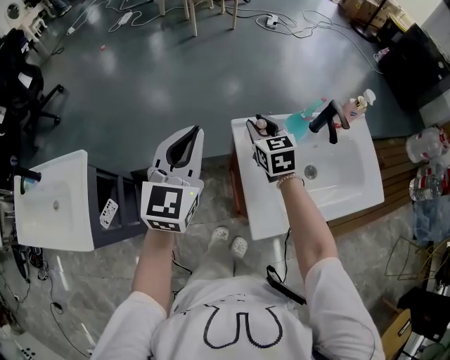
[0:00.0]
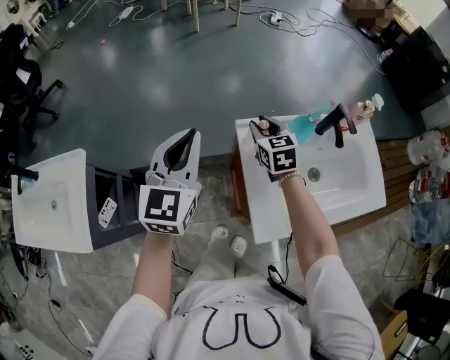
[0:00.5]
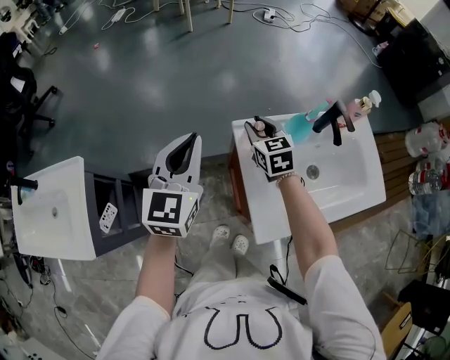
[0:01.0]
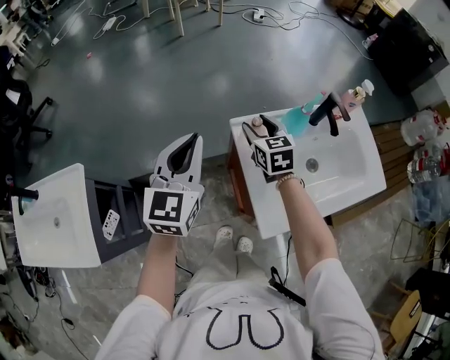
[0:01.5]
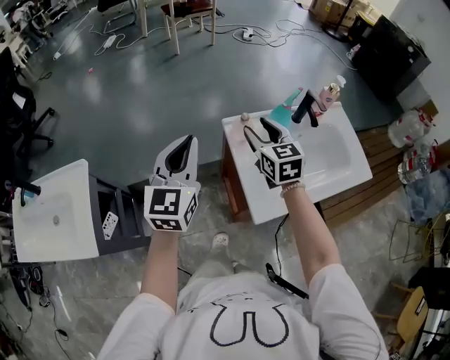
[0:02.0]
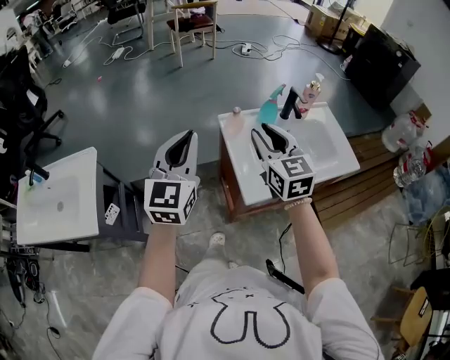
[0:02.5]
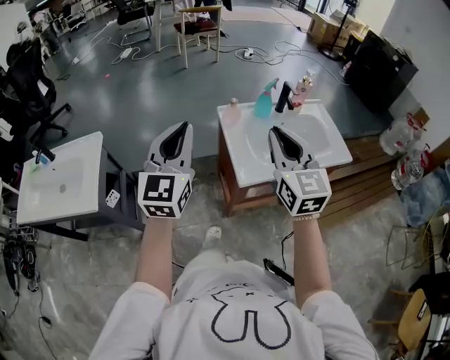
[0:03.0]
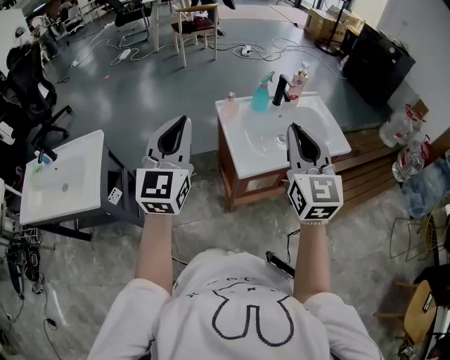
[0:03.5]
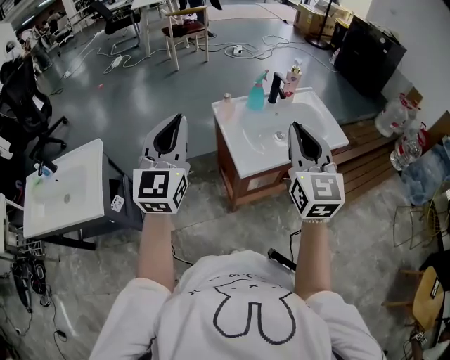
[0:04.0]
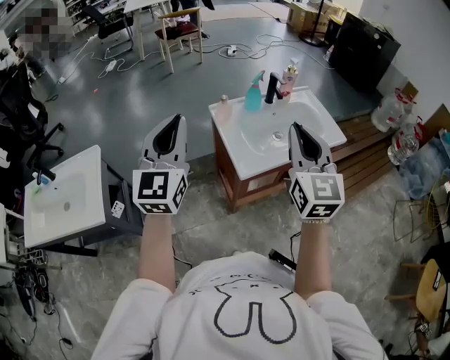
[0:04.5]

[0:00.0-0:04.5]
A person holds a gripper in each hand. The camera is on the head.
0:00.0 to 0:02.0: The right gripper goes roughly 10 cm backward and upward, and opens its fingers; the left gripper shifts some 5 cm backward.
0:02.0 to 0:04.5: The left gripper is displaced backward and upward by approximately 25 cm; the right gripper shifts approximately 40 cm backward and upward, swivels about 30 degrees, and closes its fingers.

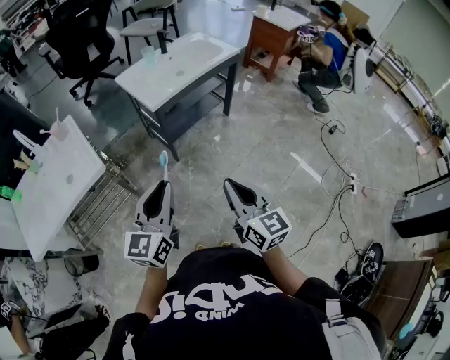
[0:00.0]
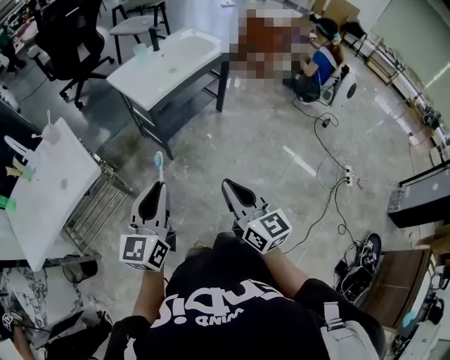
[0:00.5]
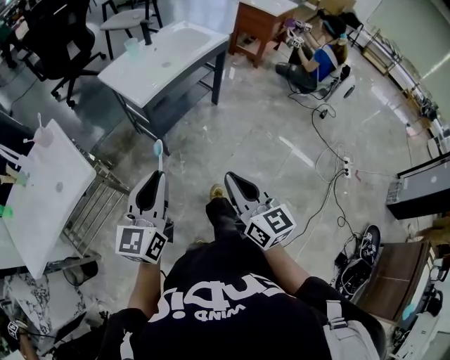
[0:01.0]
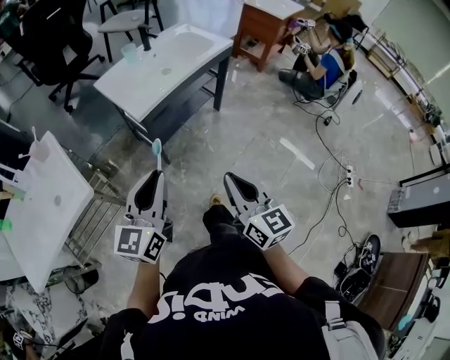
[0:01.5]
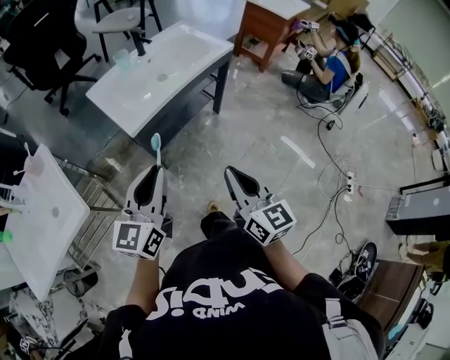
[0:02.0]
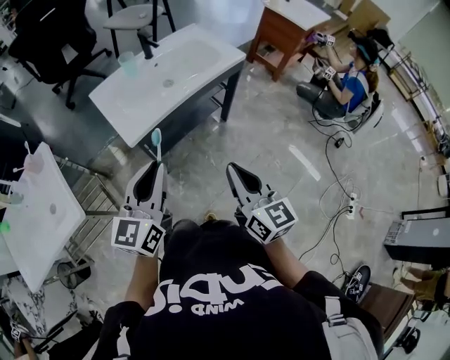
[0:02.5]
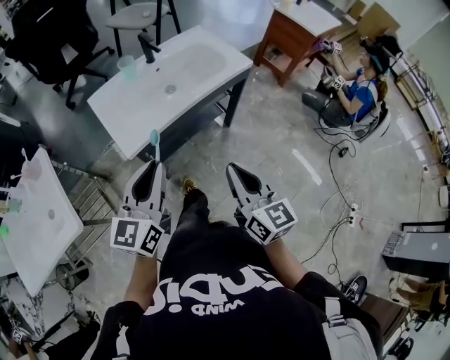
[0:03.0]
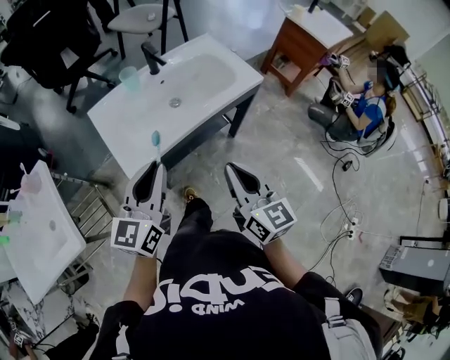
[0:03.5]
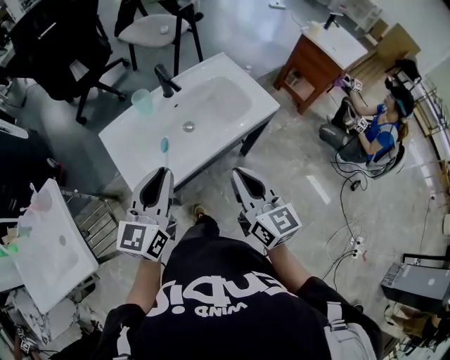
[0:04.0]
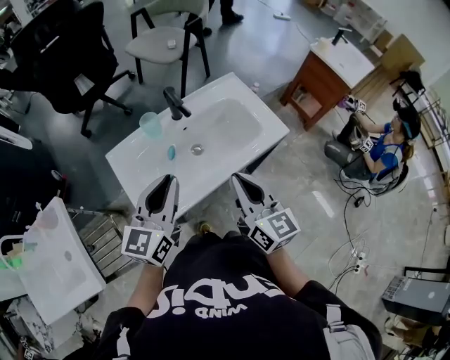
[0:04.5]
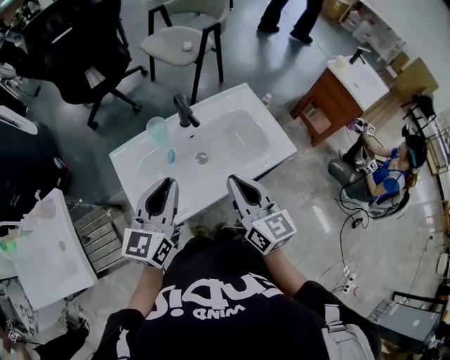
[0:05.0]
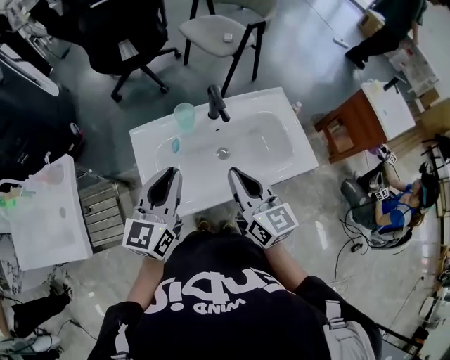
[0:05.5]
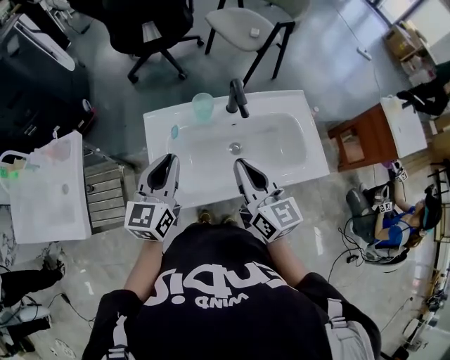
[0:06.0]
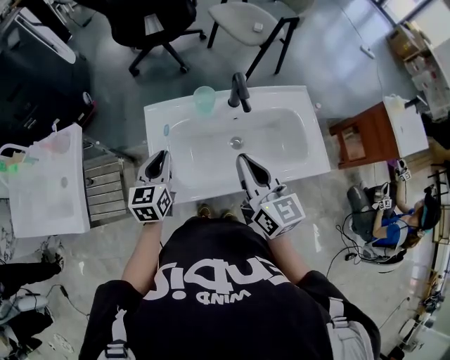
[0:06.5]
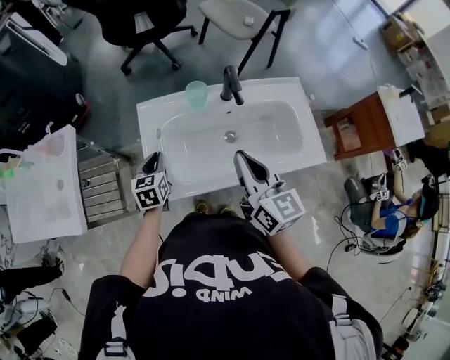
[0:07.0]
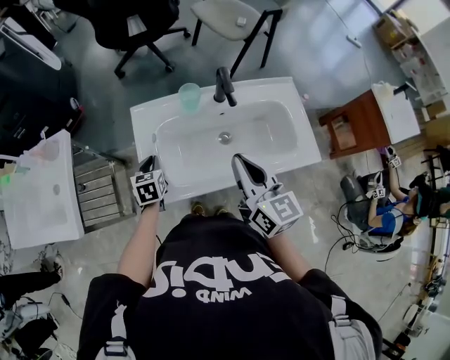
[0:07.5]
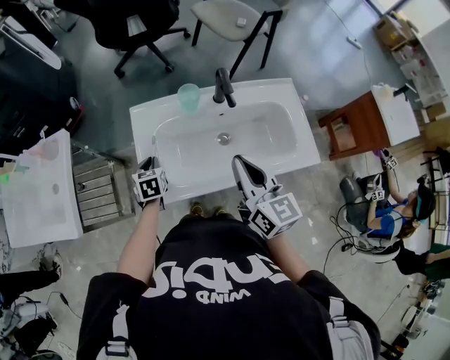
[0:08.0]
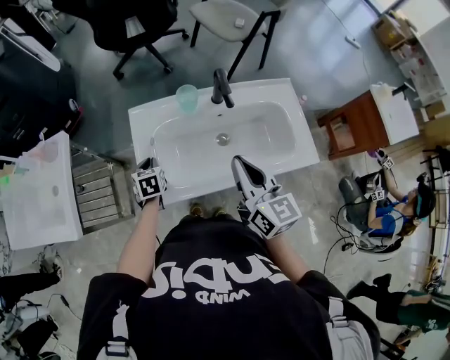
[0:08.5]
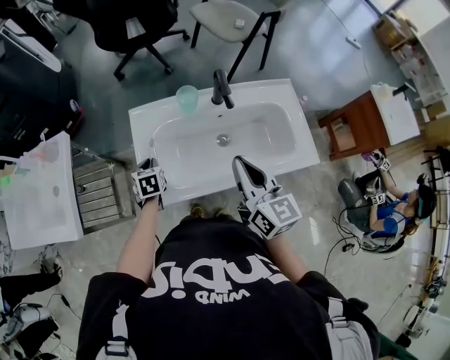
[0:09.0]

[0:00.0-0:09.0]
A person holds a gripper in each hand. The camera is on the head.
0:00.0 to 0:02.0: The grippers both shift forward by roughly 20 cm.
0:02.0 to 0:04.5: Both grippers move forward, roughly 40 cm.
0:04.5 to 0:07.0: The left gripper travels downward by roughly 25 cm, and tips its fingers downward by about 30 degrees. The right gripper moves about 10 cm, and changes its angle by about 20 degrees.
0:07.0 to 0:09.0: The left gripper travels downward by roughly 5 cm.

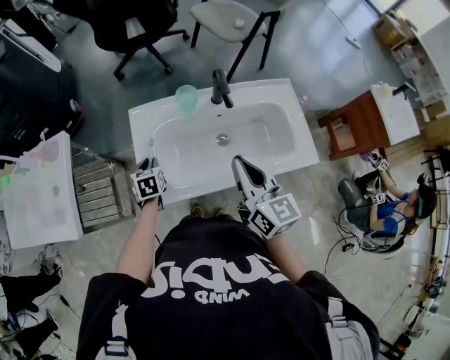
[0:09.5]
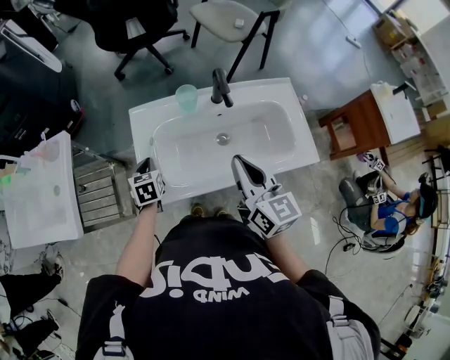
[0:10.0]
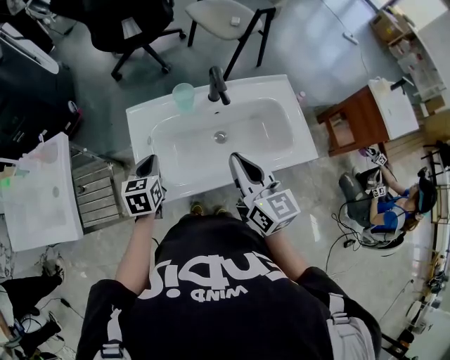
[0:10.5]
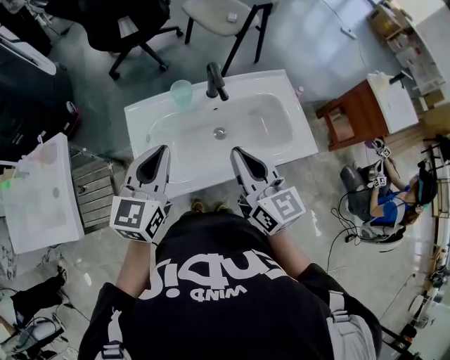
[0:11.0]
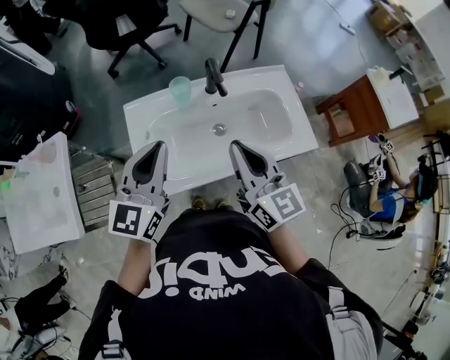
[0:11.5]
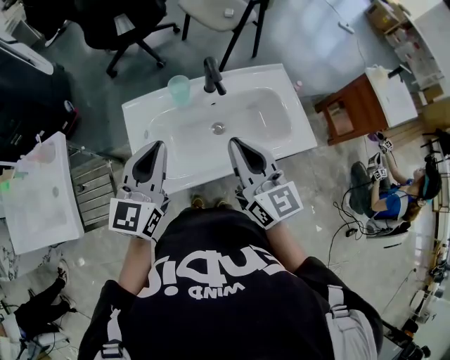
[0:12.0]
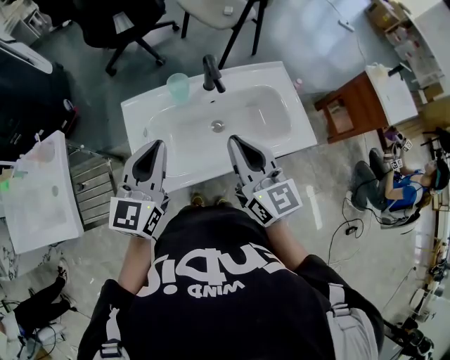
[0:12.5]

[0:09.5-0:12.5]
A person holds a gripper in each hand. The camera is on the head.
0:09.5 to 0:11.0: The left gripper travels upward by roughly 30 cm, and tips its fingers upward by roughly 40 degrees.
0:11.0 to 0:12.5: The grippers stay close to where they were, moving slightly.

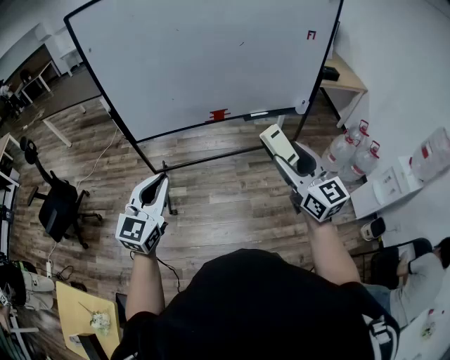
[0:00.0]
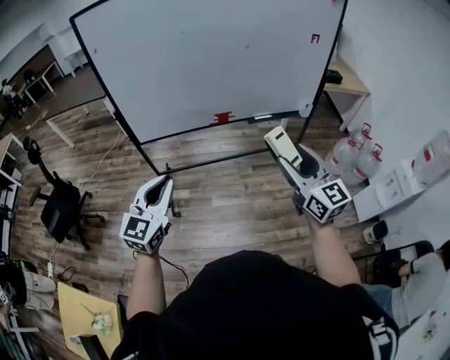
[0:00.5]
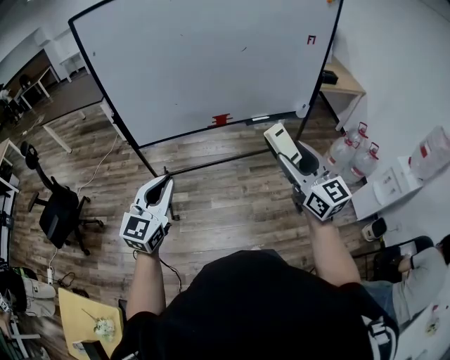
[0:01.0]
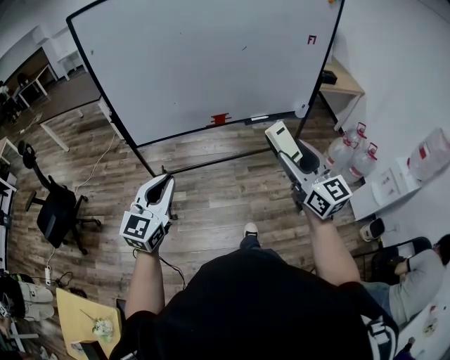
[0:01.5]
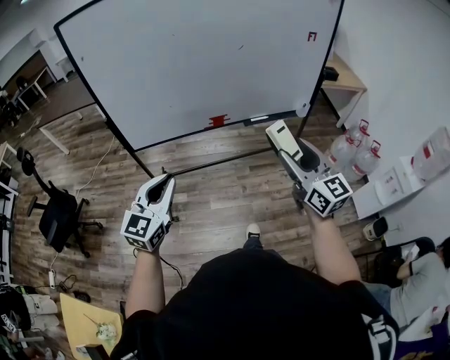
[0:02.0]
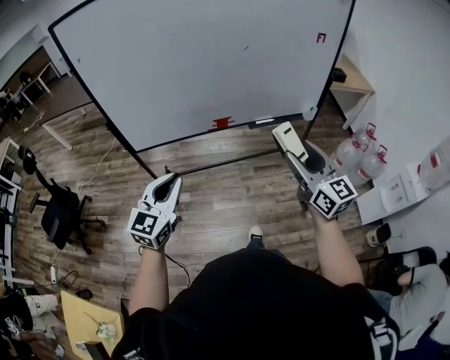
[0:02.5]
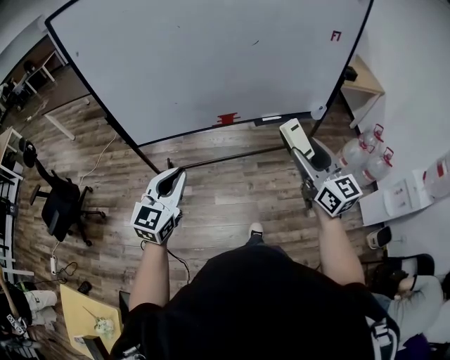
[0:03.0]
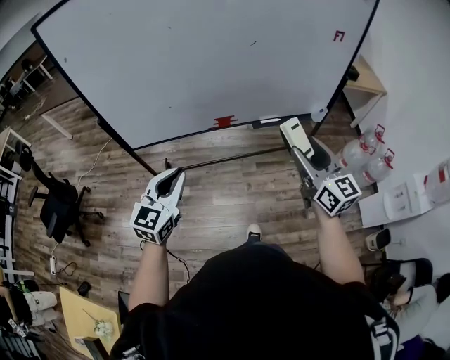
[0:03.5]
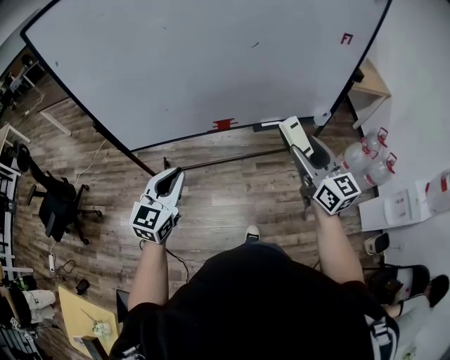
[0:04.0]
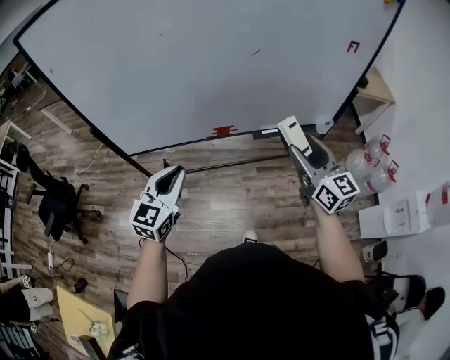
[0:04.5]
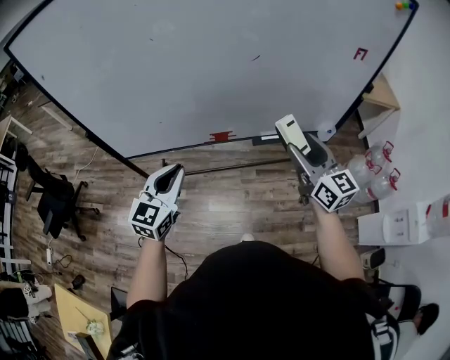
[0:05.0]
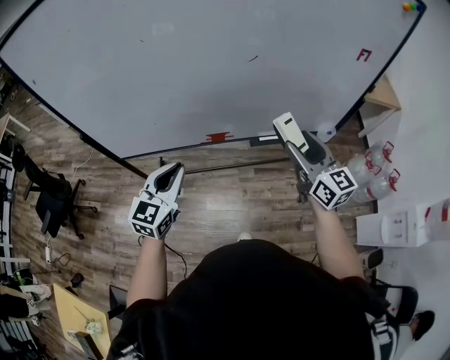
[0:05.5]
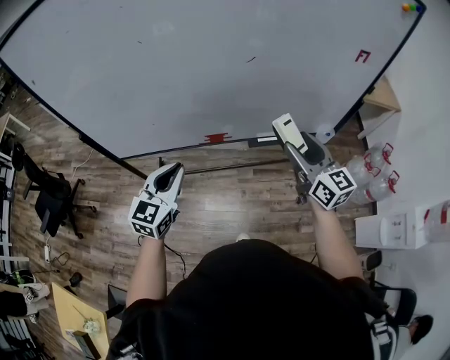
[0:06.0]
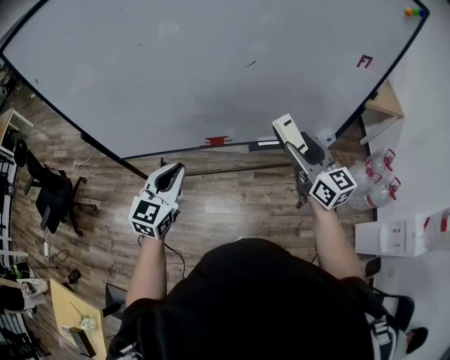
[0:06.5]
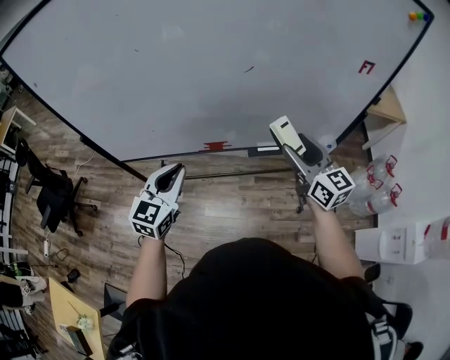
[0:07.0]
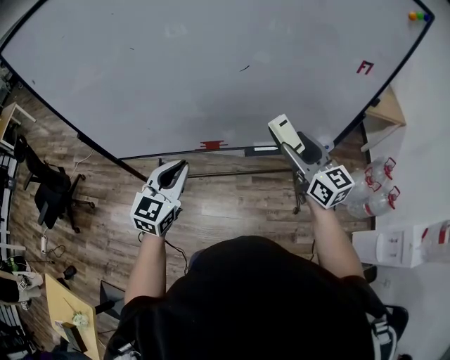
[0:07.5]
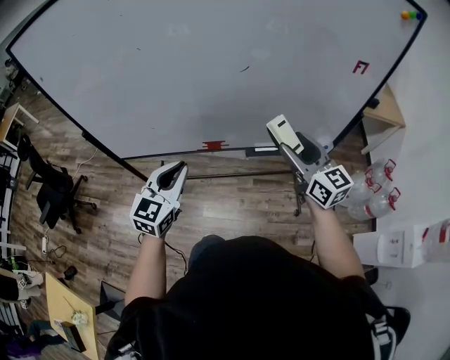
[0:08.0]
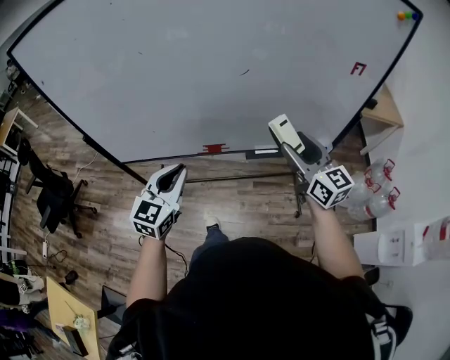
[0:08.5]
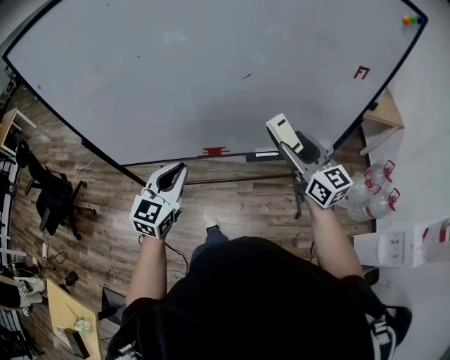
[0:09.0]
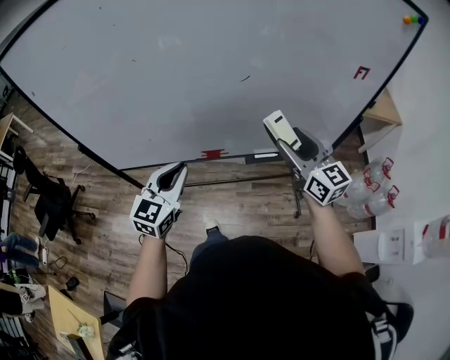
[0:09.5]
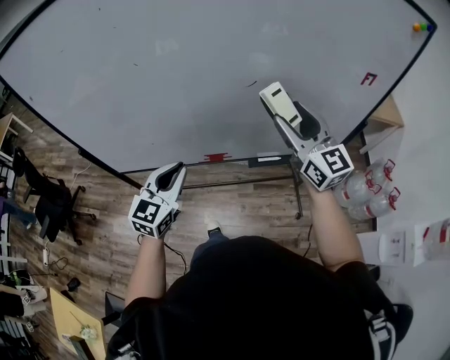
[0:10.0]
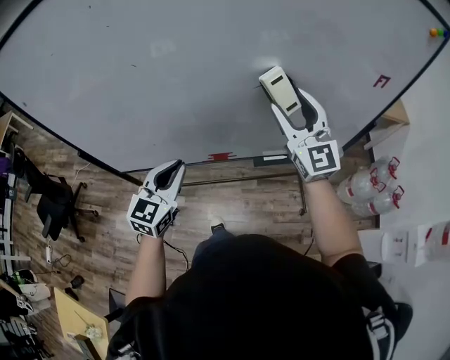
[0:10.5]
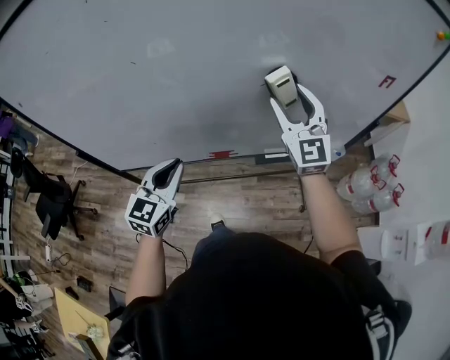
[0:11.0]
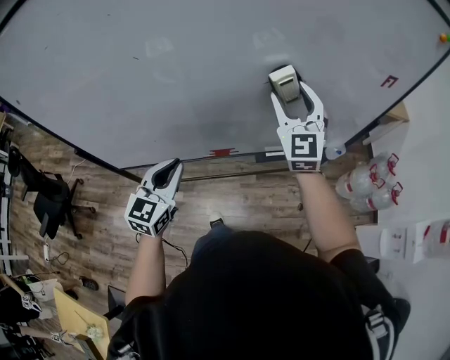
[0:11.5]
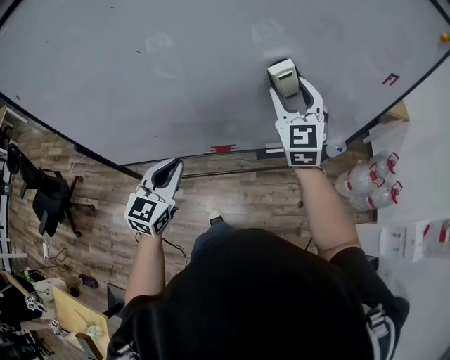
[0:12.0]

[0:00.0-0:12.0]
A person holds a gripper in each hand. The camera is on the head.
0:00.0 to 0:02.0: The two grippers go roughly 5 cm forward.
0:02.0 to 0:04.0: Both grippers move forward, approximately 20 cm.
0:04.0 to 0:06.0: The left gripper moves forward and to the right, roughly 15 cm. The right gripper heads forward, covering approximately 15 cm.
0:06.0 to 0:08.0: The grippers make only small movements.
0:08.0 to 0:10.0: The right gripper goes some 15 cm forward and upward; the left gripper moves forward, about 5 cm.
0:10.0 to 0:12.0: The right gripper shifts roughly 10 cm forward and to the left, and rotates some 30 degrees. The left gripper moves about 5 cm.
